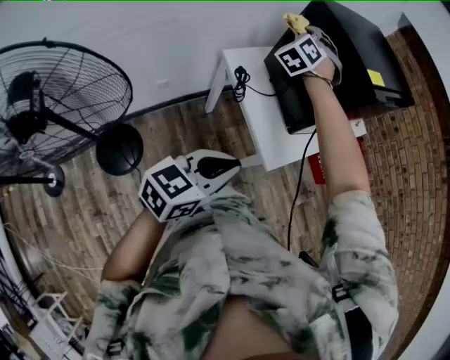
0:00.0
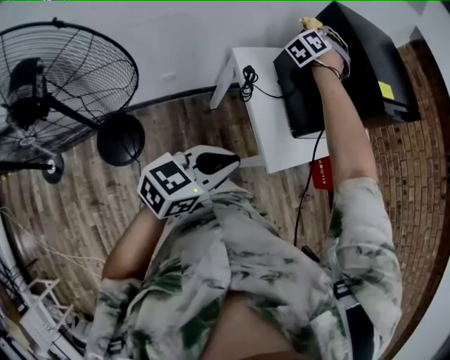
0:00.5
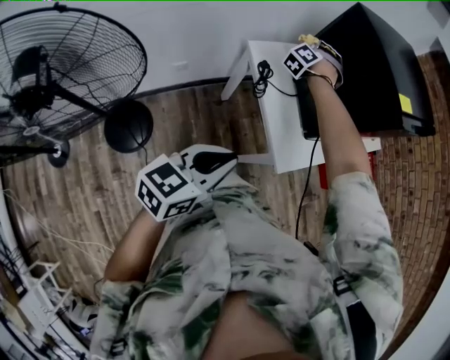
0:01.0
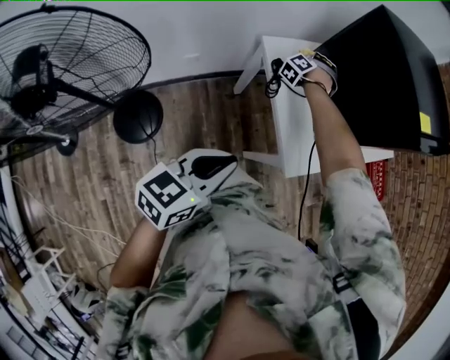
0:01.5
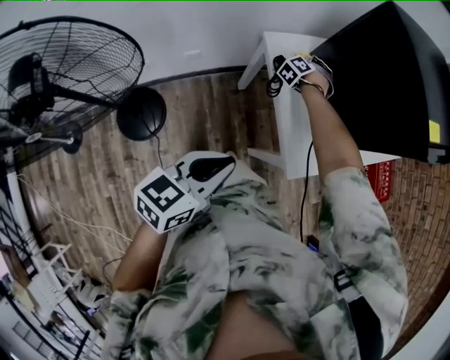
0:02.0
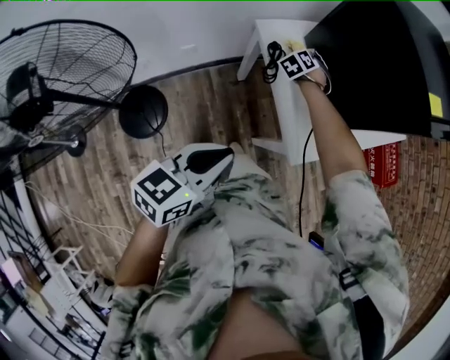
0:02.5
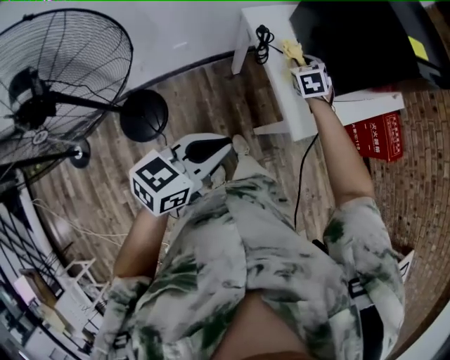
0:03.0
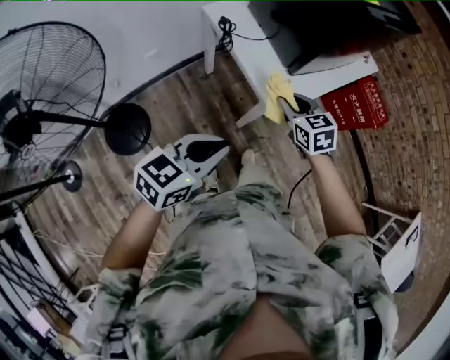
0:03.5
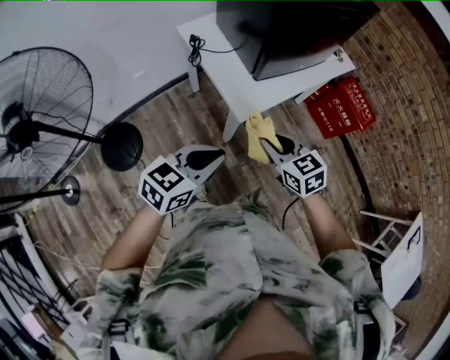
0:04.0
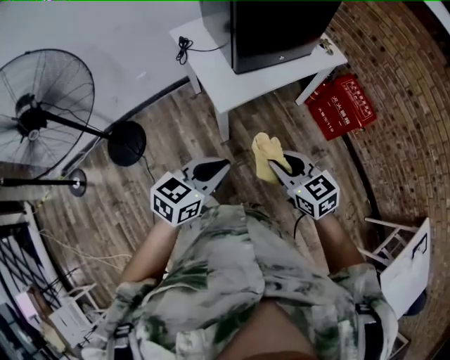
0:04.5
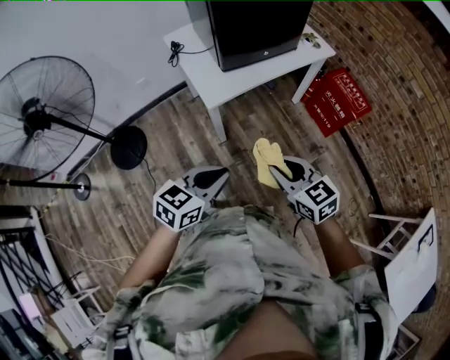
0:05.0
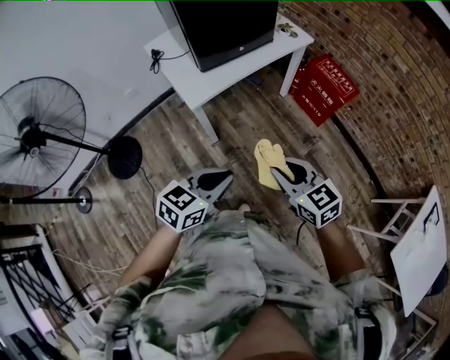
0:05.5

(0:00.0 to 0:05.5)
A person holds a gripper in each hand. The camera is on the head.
0:00.0 - 0:02.0: The left gripper goes approximately 10 cm to the left and downward, and rotates some 20 degrees; the right gripper goes approximately 35 cm downward, and rotates roughly 40 degrees.
0:02.0 - 0:03.5: The left gripper moves to the right and backward, approximately 15 cm, and swivels about 20 degrees, while the right gripper shifts approximately 40 cm backward, to the right and upward, and swivels about 70 degrees.
0:03.5 - 0:05.5: Both grippers are carried to the right and backward, approximately 40 cm.

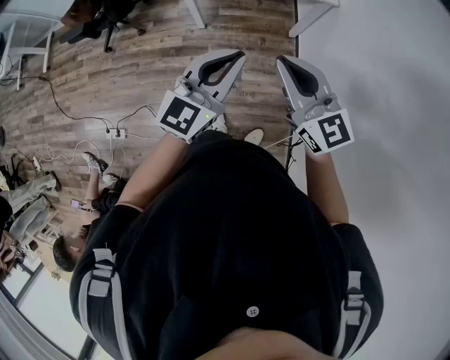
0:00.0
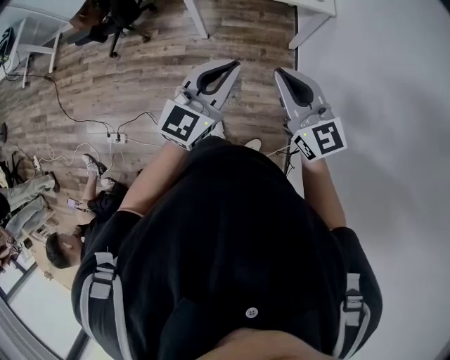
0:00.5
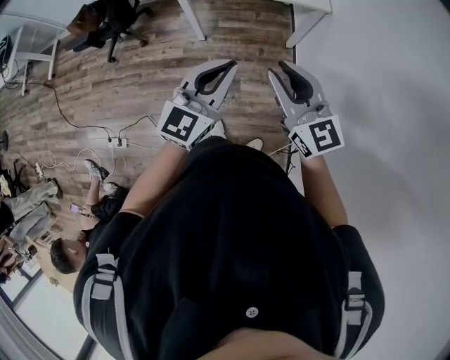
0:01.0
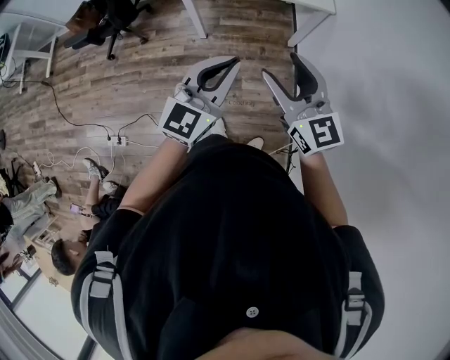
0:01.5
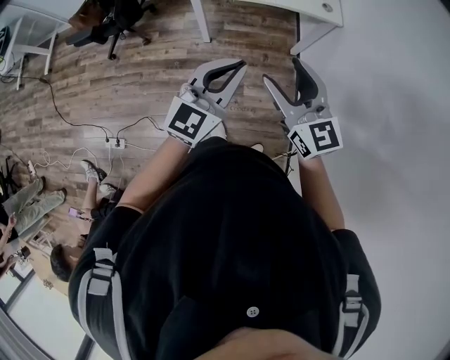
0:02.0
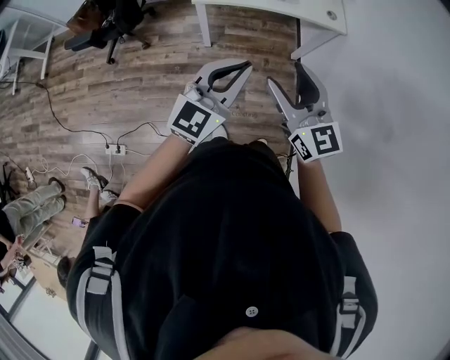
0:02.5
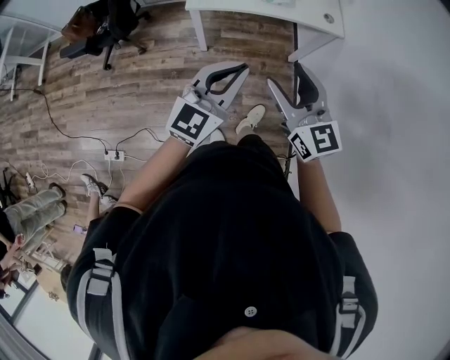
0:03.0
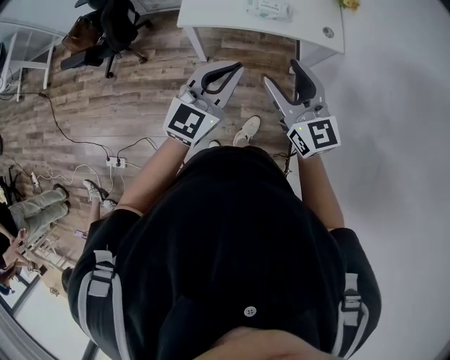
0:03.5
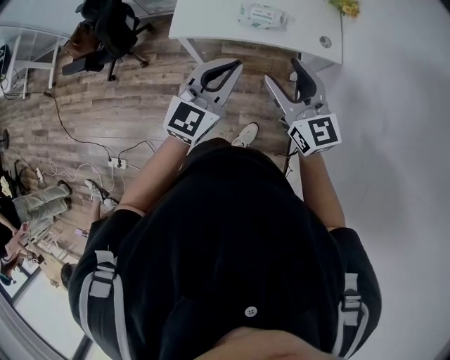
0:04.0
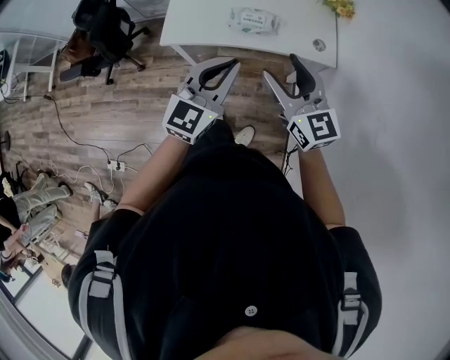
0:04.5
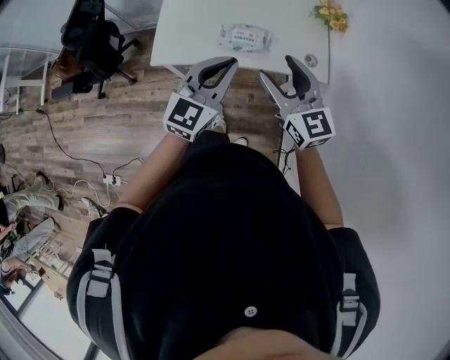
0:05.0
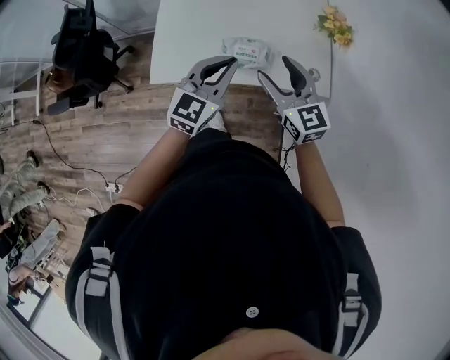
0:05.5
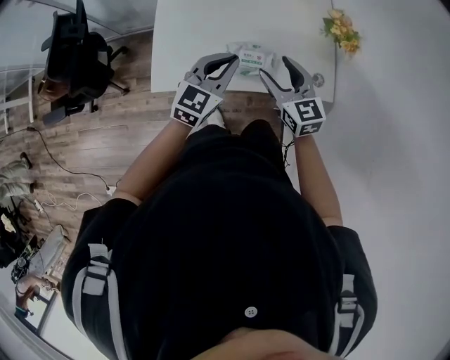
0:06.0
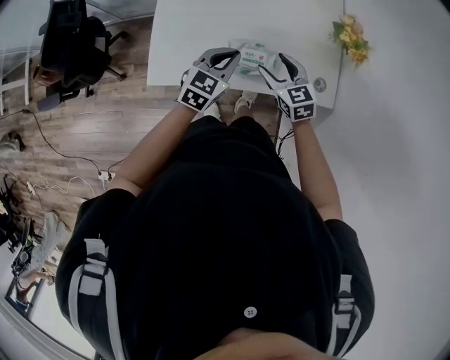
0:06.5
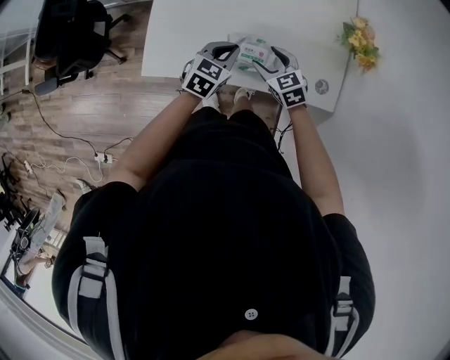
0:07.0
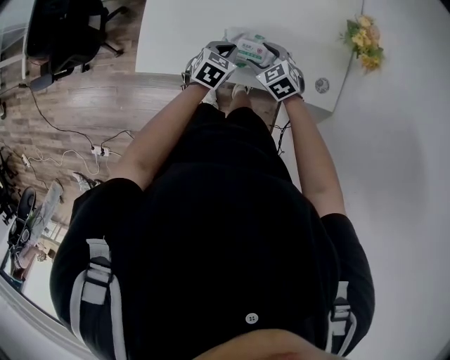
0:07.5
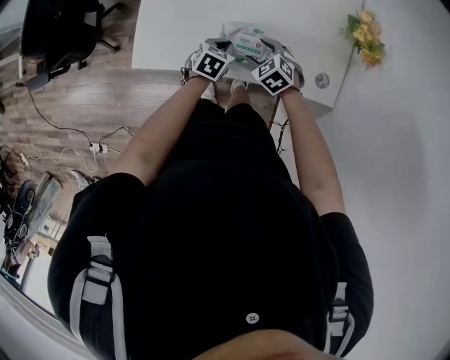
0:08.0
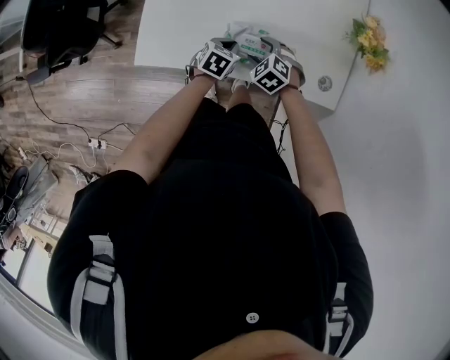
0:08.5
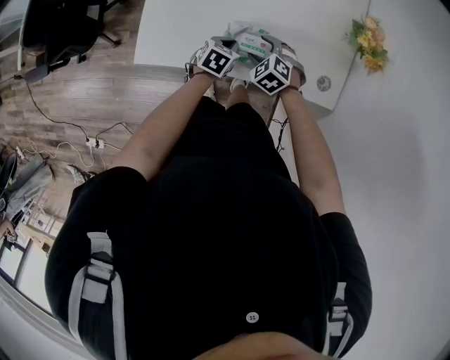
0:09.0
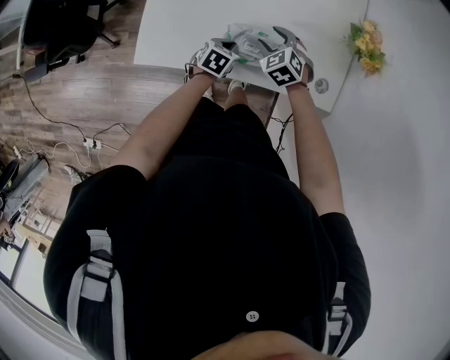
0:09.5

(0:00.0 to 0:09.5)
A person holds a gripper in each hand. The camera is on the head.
0:00.0 - 0:02.0: The two grippers go approximately 5 cm to the left. The right gripper opens its fingers.
0:02.0 - 0:04.0: Both grippers travel together forward, approximately 30 cm.
0:04.0 - 0:05.5: Both grippers move forward, some 25 cm.
0:05.5 - 0:07.5: Both grippers move downward and forward, roughly 30 cm. The right gripper angles its fingers downward, by approximately 40 degrees; the left gripper tilts its fingers roughly 40 degrees downward.
0:07.5 - 0:09.5: The left gripper is displaced downward by about 5 cm. The right gripper is displaced forward by approximately 5 cm.

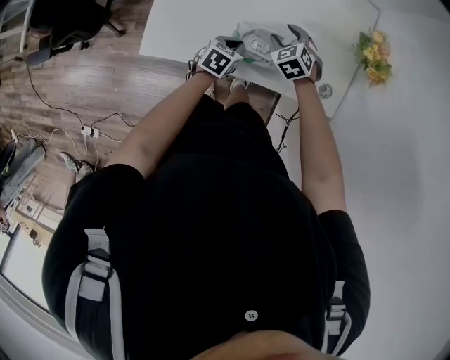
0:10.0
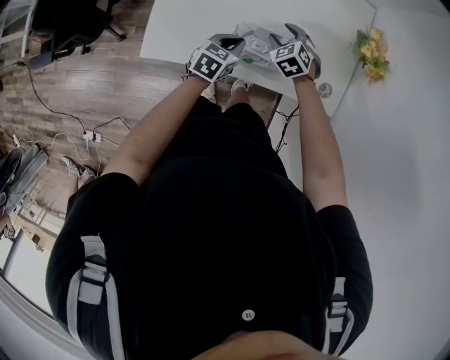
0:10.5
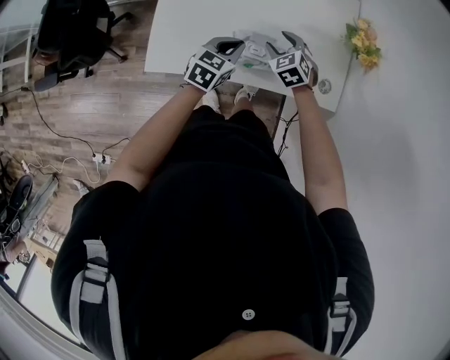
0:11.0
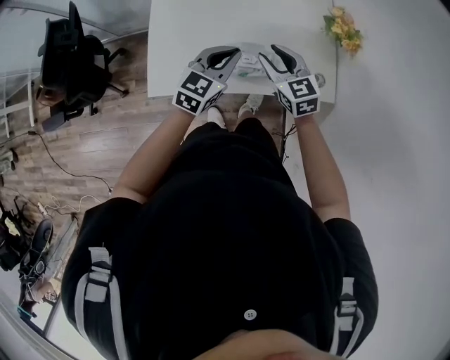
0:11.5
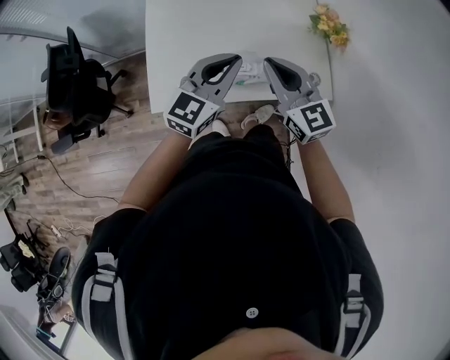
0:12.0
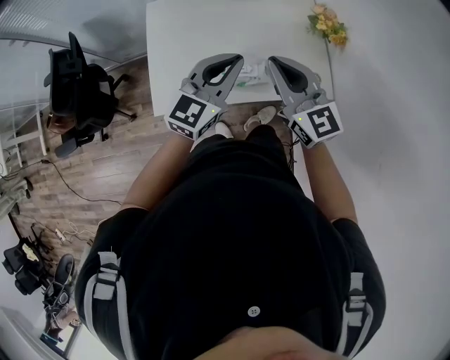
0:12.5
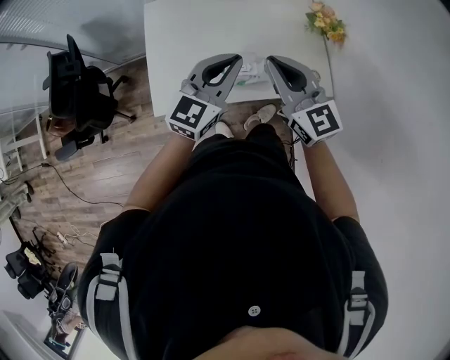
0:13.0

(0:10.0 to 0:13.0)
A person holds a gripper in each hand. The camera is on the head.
0:10.0 - 0:11.5: The left gripper heads upward, covering some 25 cm, and tilts its fingers about 30 degrees upward; the right gripper heads upward and backward, covering roughly 20 cm, and turns by roughly 40 degrees.
0:11.5 - 0:13.0: The grippers both shift upward by about 15 cm. The right gripper rotates about 20 degrees, and closes its fingers.

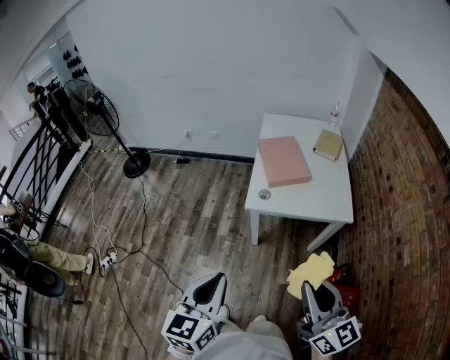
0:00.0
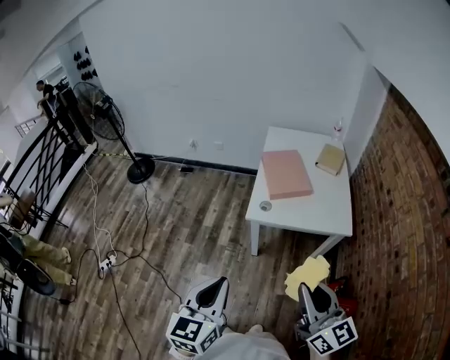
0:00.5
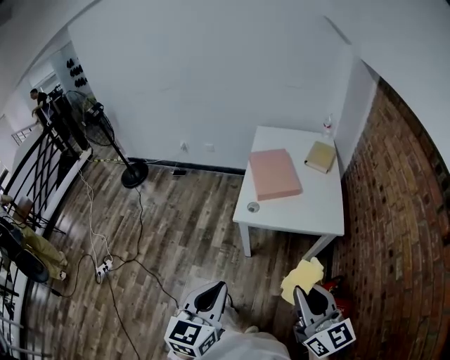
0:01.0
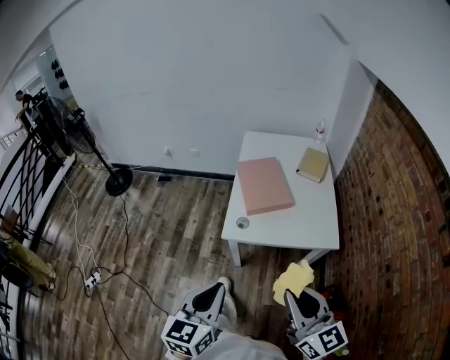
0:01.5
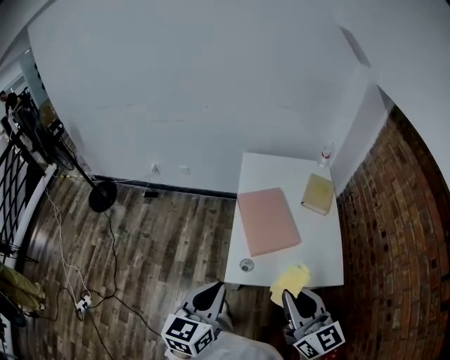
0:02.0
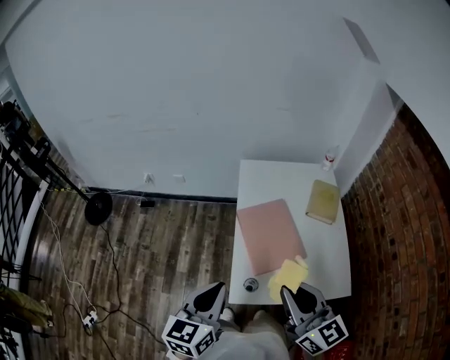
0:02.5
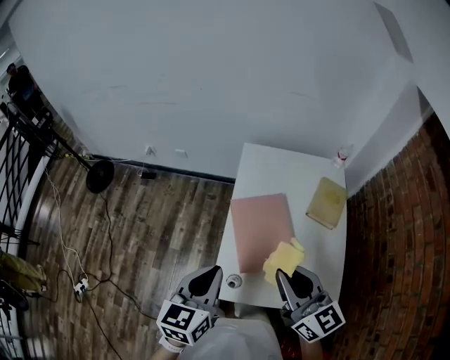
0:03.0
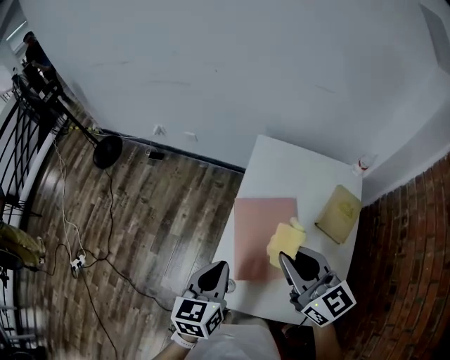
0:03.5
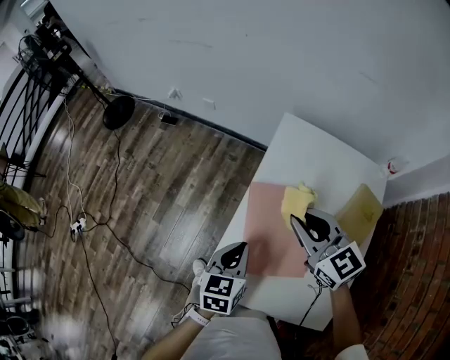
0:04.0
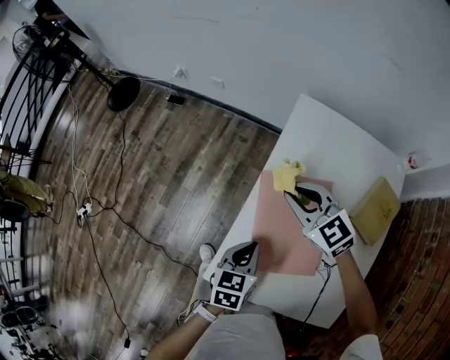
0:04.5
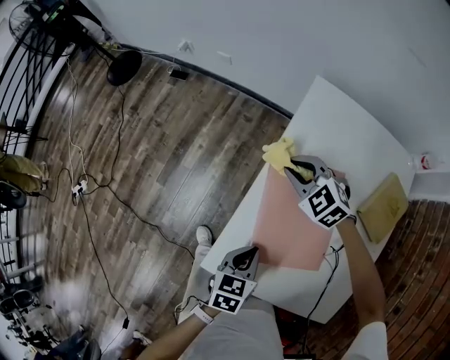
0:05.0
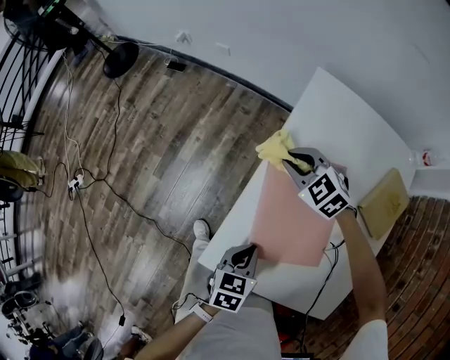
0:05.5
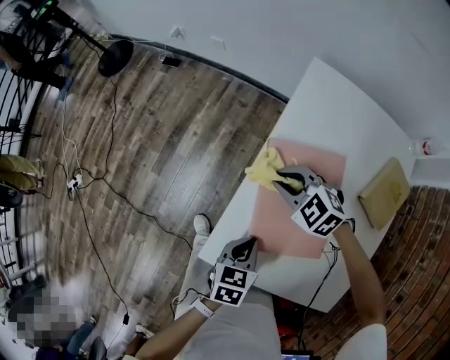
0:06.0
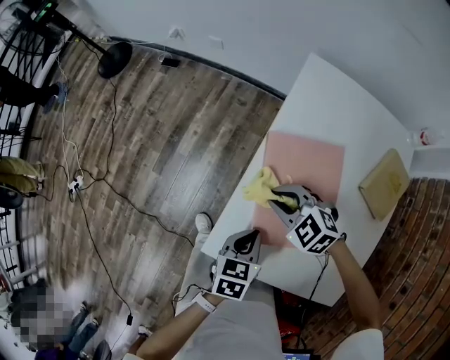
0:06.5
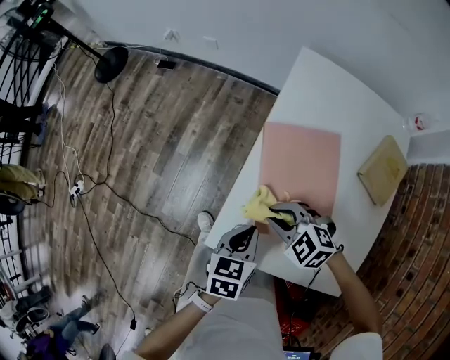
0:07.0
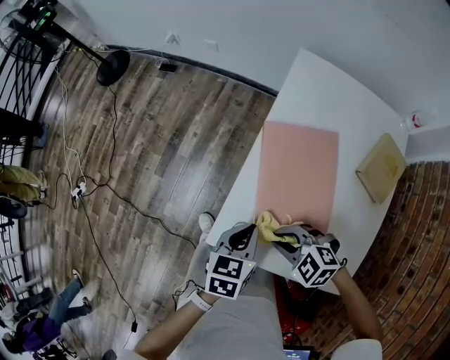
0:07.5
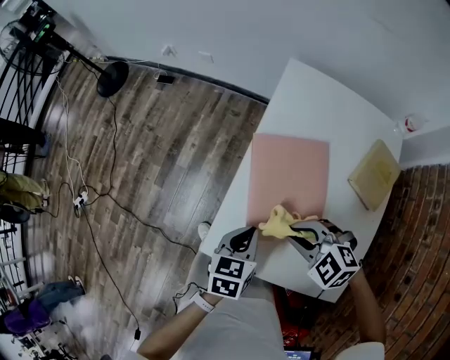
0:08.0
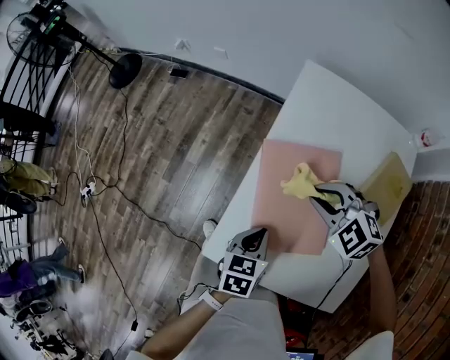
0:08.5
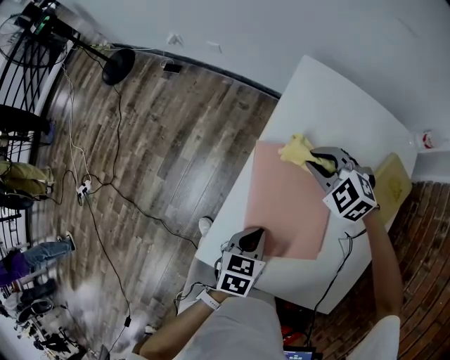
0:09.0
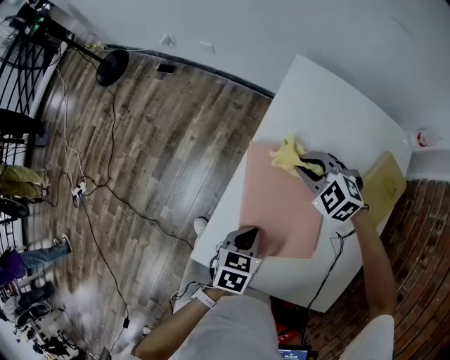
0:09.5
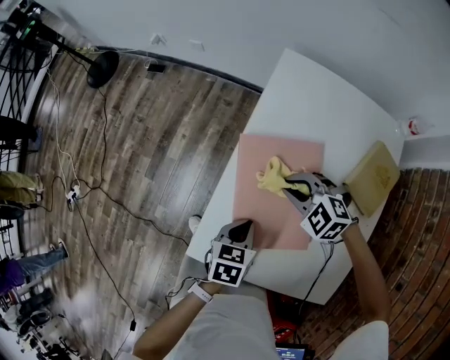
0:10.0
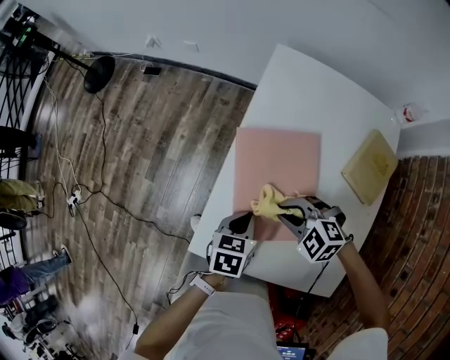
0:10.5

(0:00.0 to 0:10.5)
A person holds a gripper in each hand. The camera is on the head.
0:00.0 - 0:02.0: Both grippers move forward, roughly 30 cm.
0:02.0 - 0:04.0: The left gripper travels forward, downward and to the right by about 35 cm, and turns by some 30 degrees. The right gripper heads forward, covering roughly 40 cm, and turns by about 40 degrees.
0:04.0 - 0:06.5: The right gripper heads downward and to the left, covering roughly 20 cm, and turns by some 40 degrees, while the left gripper is displaced downward and backward by approximately 15 cm.
0:06.5 - 0:08.5: The right gripper is displaced to the right and upward by roughly 15 cm, and travels backward and back again, roughly 15 cm each way.
0:08.5 - 0:10.5: The right gripper travels backward and downward by about 10 cm.
